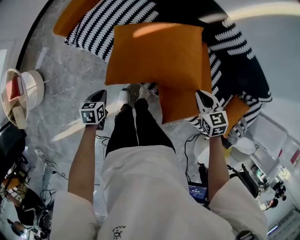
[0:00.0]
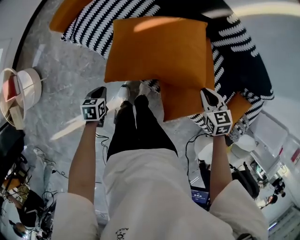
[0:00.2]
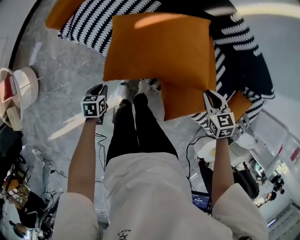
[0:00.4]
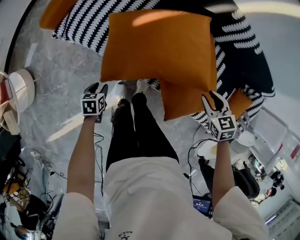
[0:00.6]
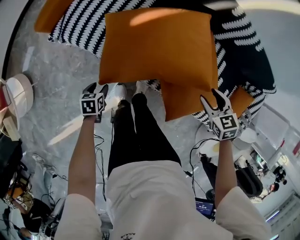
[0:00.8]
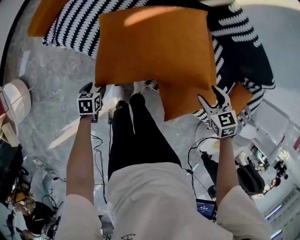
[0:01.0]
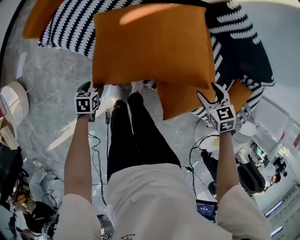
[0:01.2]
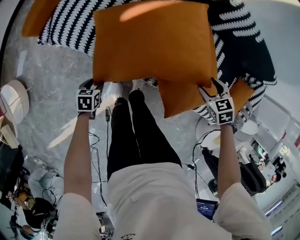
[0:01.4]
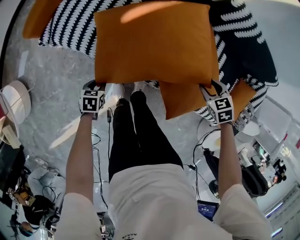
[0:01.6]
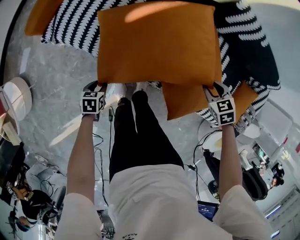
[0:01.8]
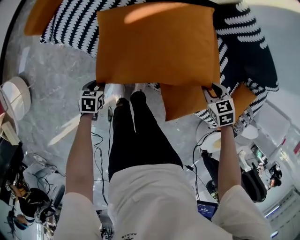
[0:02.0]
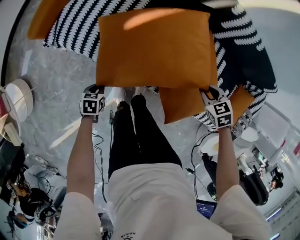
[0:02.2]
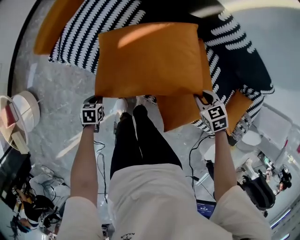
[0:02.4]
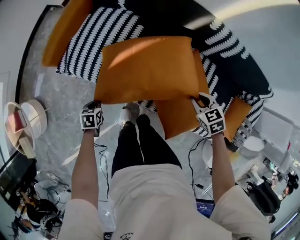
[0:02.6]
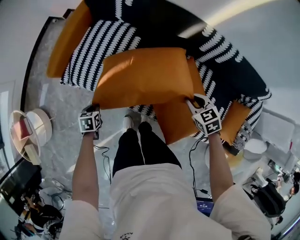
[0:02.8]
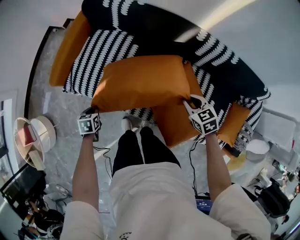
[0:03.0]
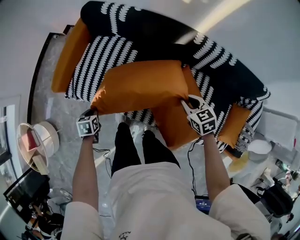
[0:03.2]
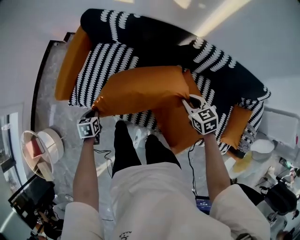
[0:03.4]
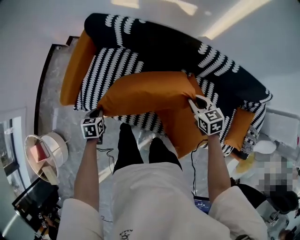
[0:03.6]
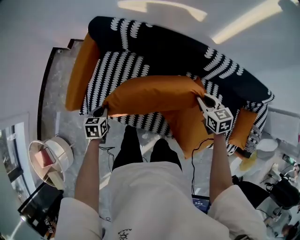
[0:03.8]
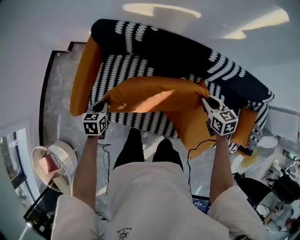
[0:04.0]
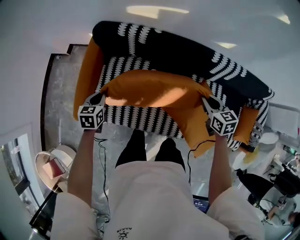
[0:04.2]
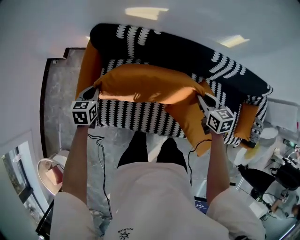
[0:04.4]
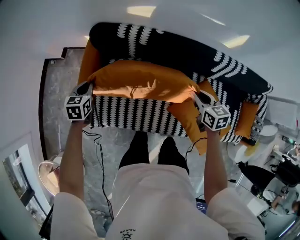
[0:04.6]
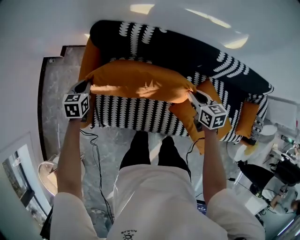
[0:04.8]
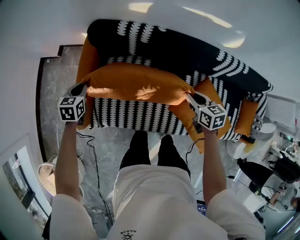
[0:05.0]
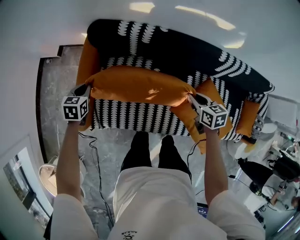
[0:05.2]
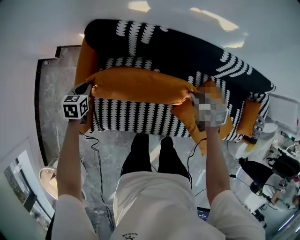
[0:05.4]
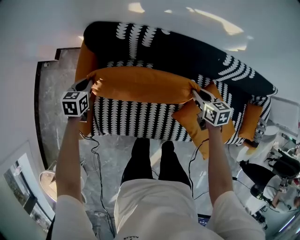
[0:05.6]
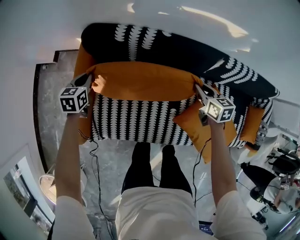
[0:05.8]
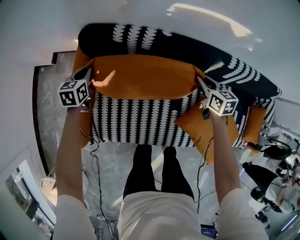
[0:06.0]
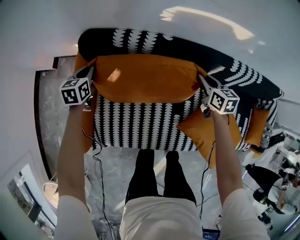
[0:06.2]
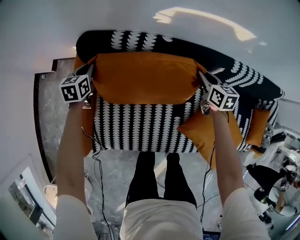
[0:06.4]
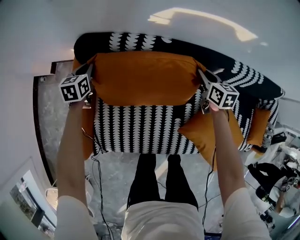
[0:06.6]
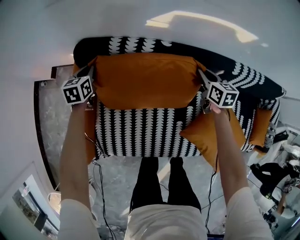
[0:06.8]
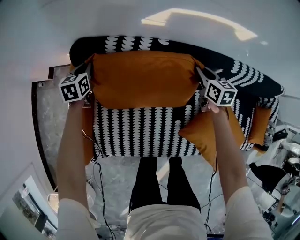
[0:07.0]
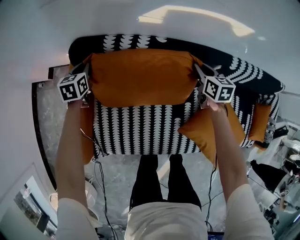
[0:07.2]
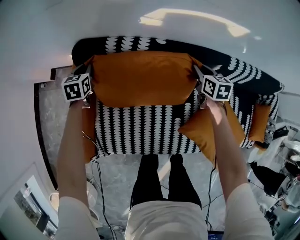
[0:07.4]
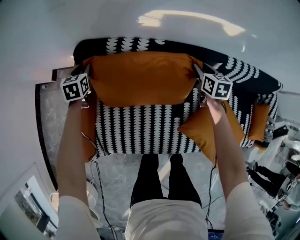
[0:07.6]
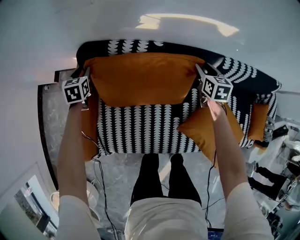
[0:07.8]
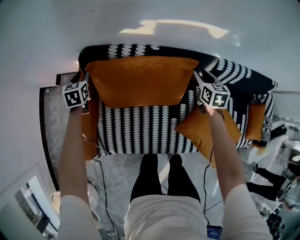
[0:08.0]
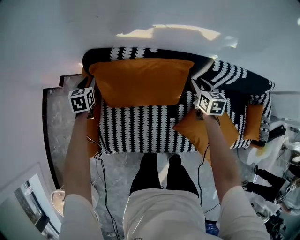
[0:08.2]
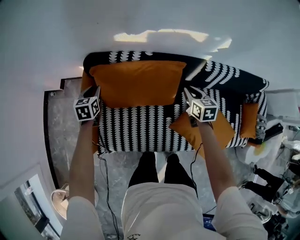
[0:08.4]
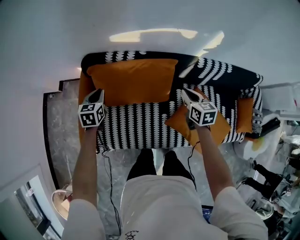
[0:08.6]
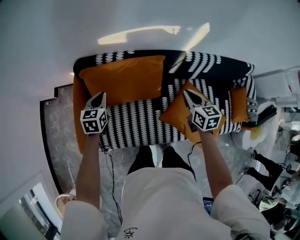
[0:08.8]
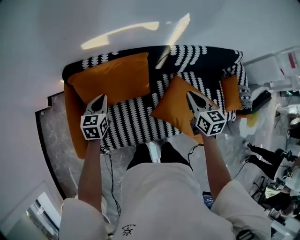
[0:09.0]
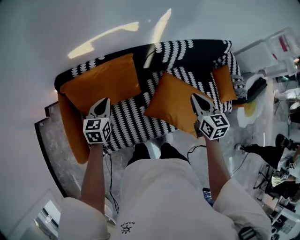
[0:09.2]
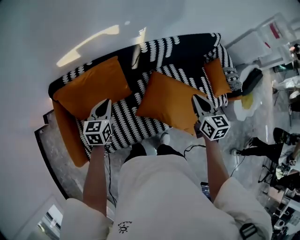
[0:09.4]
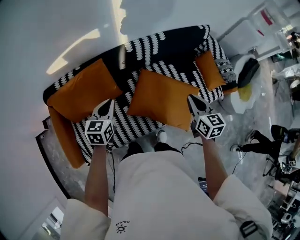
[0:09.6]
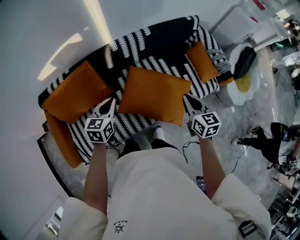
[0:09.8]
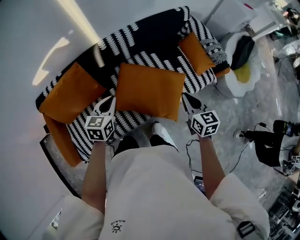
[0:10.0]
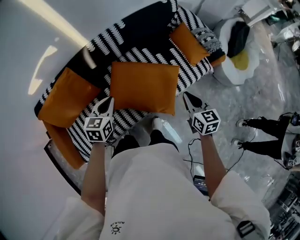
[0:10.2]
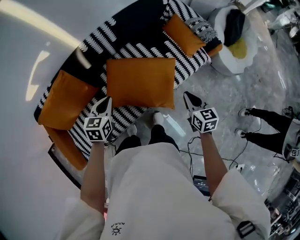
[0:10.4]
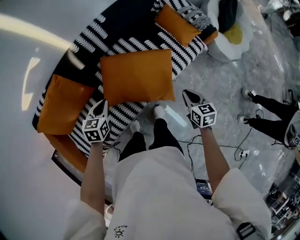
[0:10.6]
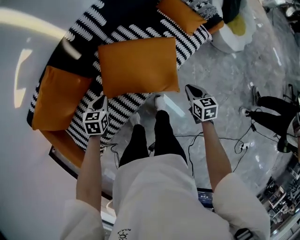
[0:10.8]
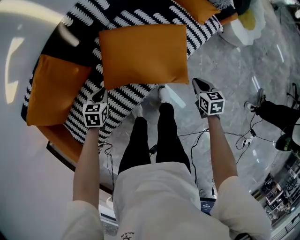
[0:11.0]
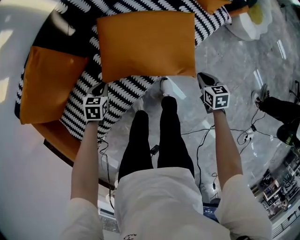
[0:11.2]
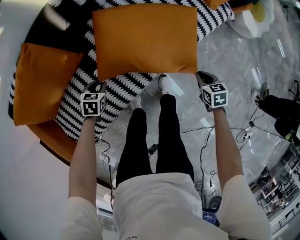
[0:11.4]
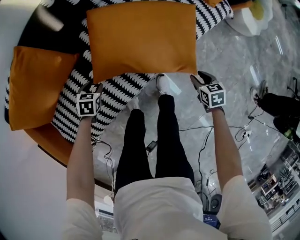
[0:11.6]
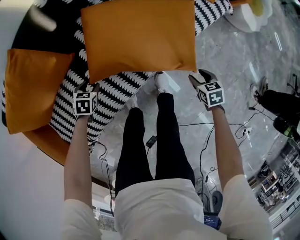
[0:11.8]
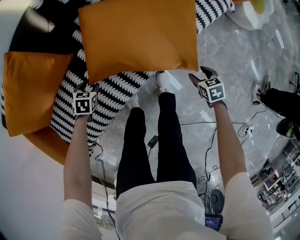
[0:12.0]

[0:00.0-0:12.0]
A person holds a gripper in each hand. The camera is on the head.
0:00.0 to 0:01.6: The right gripper goes some 15 cm downward and to the right, swivels roughly 20 degrees, and opens up; the left gripper heads downward, covering approximately 15 cm, and opens its fingers.
0:01.6 to 0:03.0: Both grippers travel together upward and forward, about 15 cm. The right gripper swivels approximately 20 degrees, and closes up. The left gripper closes.
0:03.0 to 0:04.4: The left gripper is displaced forward and upward by some 35 cm, and swivels approximately 30 degrees. Meanwhile the right gripper moves forward, to the left and upward, roughly 20 cm, and swivels about 30 degrees.
0:04.4 to 0:06.0: The two grippers go approximately 20 cm forward and downward.
0:06.0 to 0:07.6: The grippers both shift forward by approximately 10 cm. The left gripper opens its fingers.
0:07.6 to 0:09.0: The right gripper shifts about 35 cm backward and upward, and closes up, while the left gripper moves to the right, backward and upward, about 35 cm, swivels about 20 degrees, and closes its fingers.
0:09.0 to 0:10.4: The two grippers travel together, some 40 cm. The right gripper rotates approximately 30 degrees, while the left gripper turns by roughly 30 degrees.
0:10.4 to 0:12.0: Both grippers travel together downward, approximately 40 cm. The right gripper tilts its fingers about 40 degrees downward, and opens up; the left gripper points its fingers approximately 30 degrees further downward, and opens its fingers.

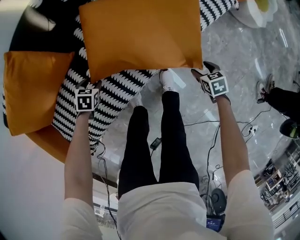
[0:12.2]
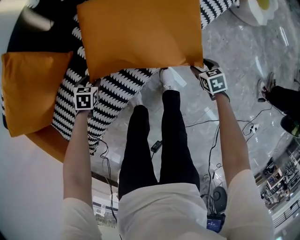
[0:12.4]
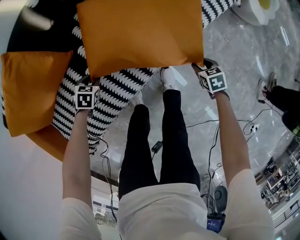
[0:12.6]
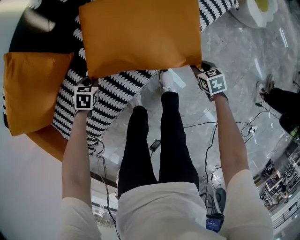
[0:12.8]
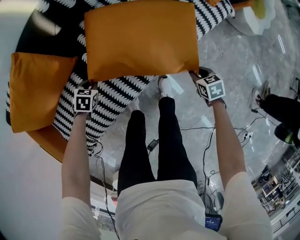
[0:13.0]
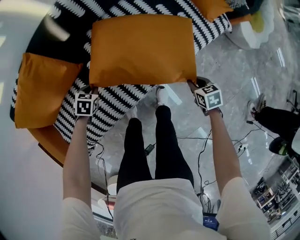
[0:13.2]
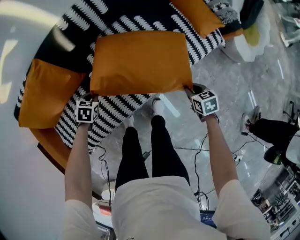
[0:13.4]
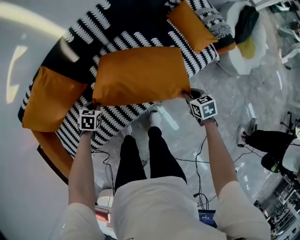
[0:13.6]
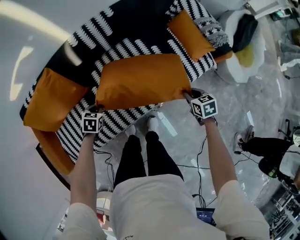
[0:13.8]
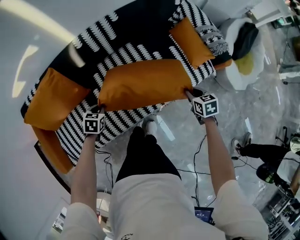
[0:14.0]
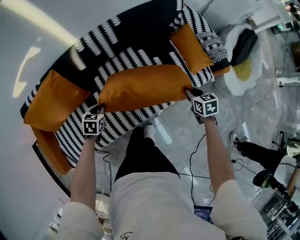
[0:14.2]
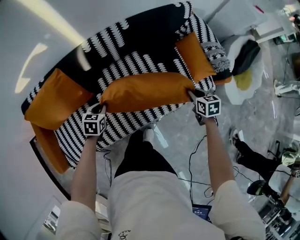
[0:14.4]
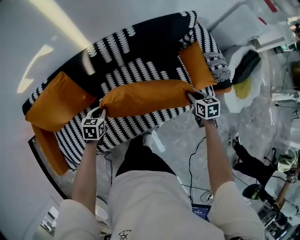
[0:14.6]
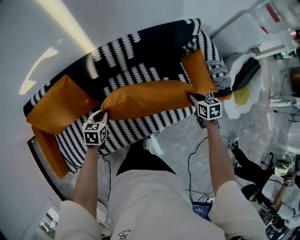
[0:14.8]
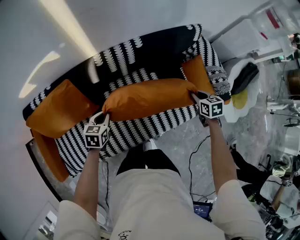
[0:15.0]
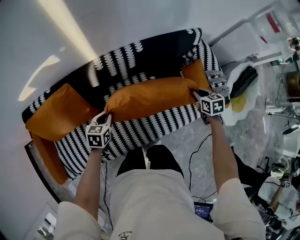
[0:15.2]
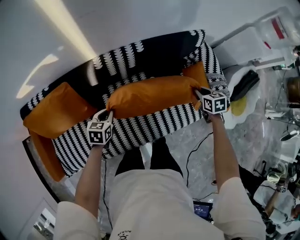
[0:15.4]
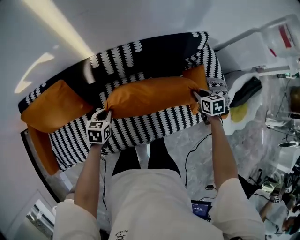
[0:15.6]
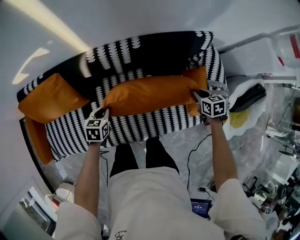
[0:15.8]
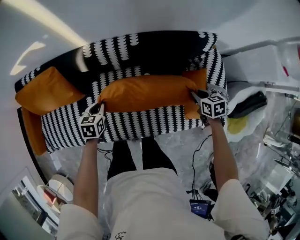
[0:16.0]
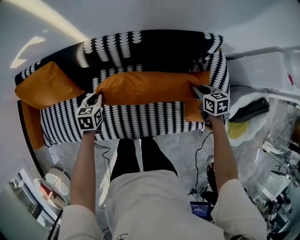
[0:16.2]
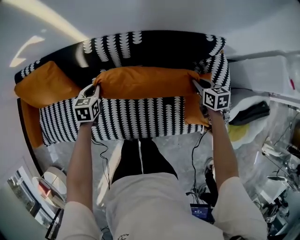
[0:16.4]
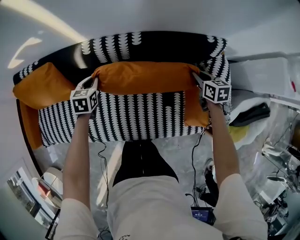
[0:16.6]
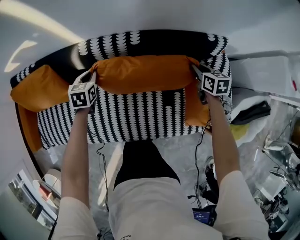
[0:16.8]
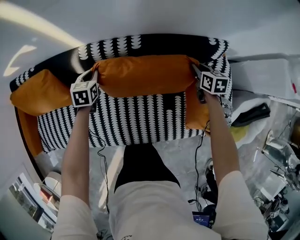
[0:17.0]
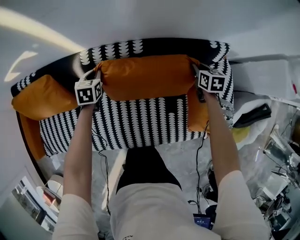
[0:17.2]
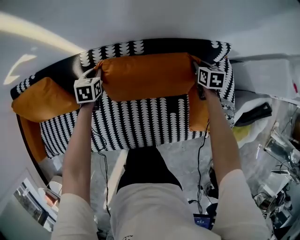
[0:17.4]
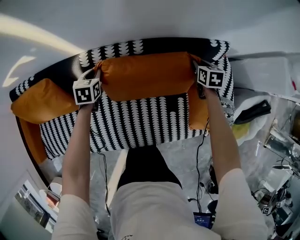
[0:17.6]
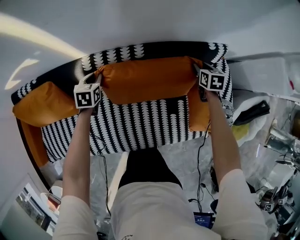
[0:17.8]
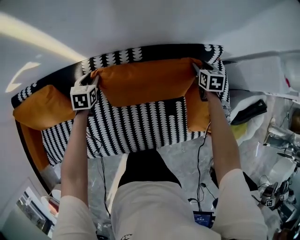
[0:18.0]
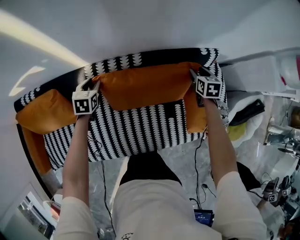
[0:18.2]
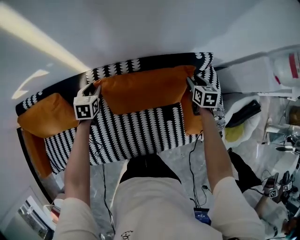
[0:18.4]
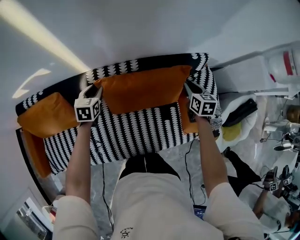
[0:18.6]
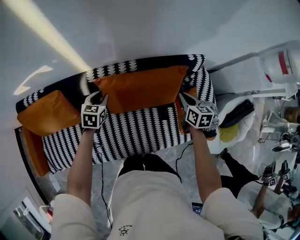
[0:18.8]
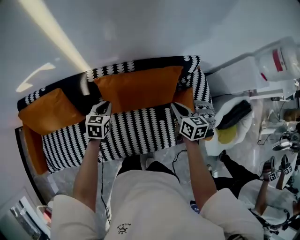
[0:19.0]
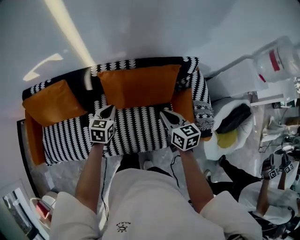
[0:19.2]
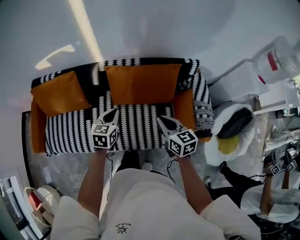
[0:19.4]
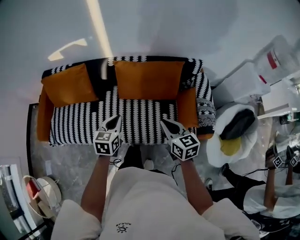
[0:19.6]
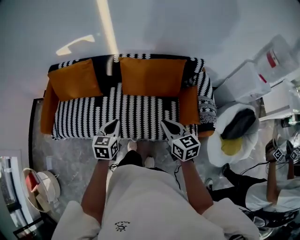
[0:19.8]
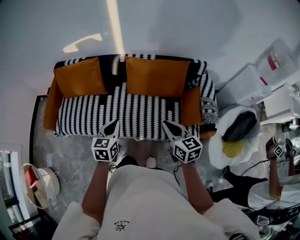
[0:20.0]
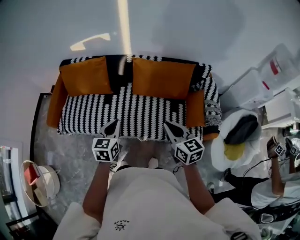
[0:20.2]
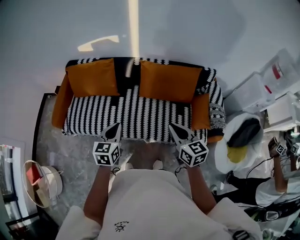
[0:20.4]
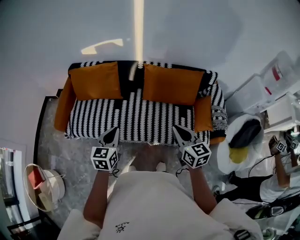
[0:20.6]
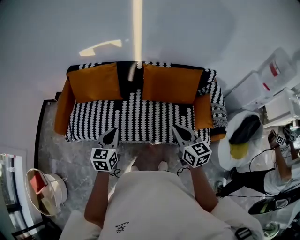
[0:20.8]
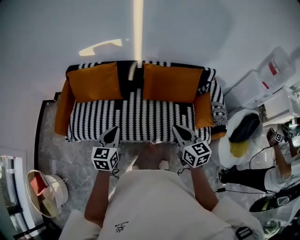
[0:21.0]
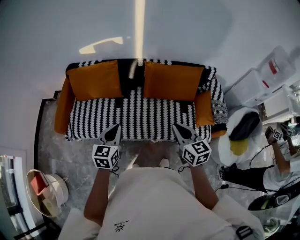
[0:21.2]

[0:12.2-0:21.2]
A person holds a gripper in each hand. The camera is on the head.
0:12.2 to 0:13.8: The two grippers go roughly 20 cm upward. The right gripper closes; the left gripper closes its fingers.
0:13.8 to 0:15.2: The left gripper is displaced upward and forward by about 15 cm, and turns by about 30 degrees, while the right gripper shifts roughly 30 cm forward and upward.
0:15.2 to 0:16.6: The left gripper ends up approximately 20 cm from where it was, and changes its angle by about 20 degrees, while the right gripper changes place by approximately 25 cm.
0:16.6 to 0:18.2: Both grippers move forward, roughly 10 cm. The right gripper swivels some 20 degrees, and opens up, while the left gripper opens up.
0:18.2 to 0:19.8: The pair of grippers is taken backward, about 50 cm. The two grippers go approximately 20 cm upward. The right gripper rotates some 40 degrees, and closes; the left gripper closes its fingers.
0:19.8 to 0:21.2: Both grippers travel together to the left, some 20 cm.

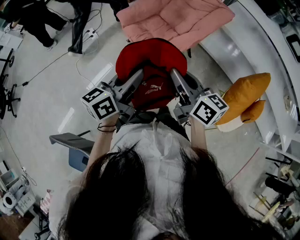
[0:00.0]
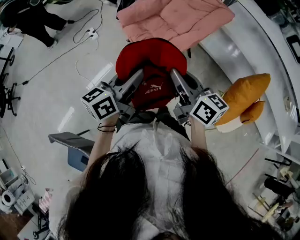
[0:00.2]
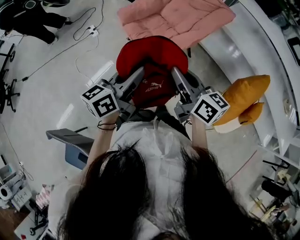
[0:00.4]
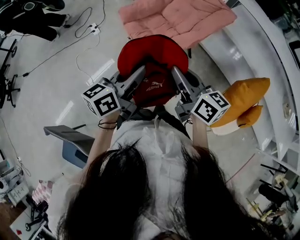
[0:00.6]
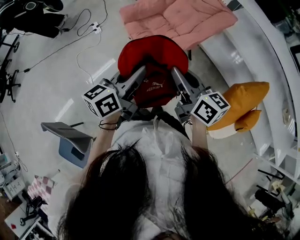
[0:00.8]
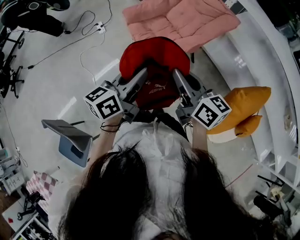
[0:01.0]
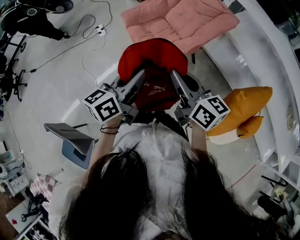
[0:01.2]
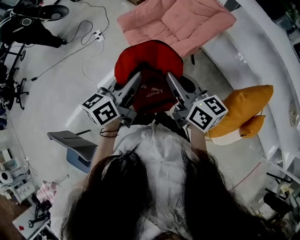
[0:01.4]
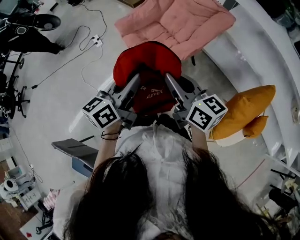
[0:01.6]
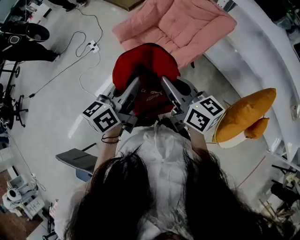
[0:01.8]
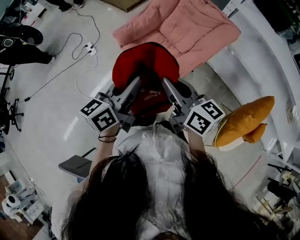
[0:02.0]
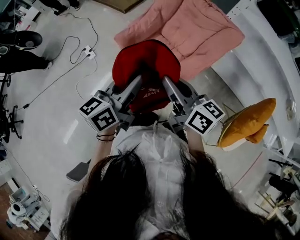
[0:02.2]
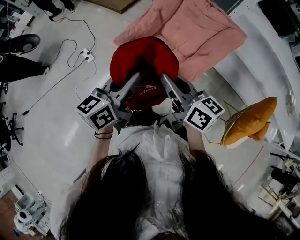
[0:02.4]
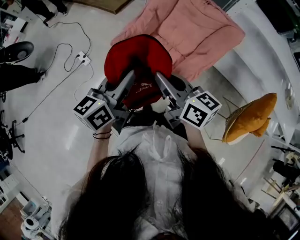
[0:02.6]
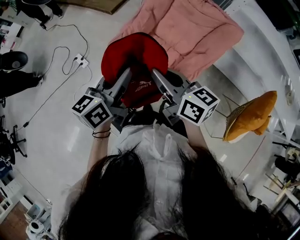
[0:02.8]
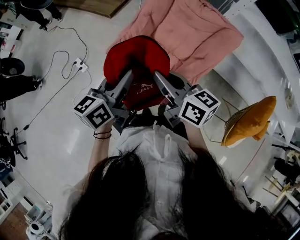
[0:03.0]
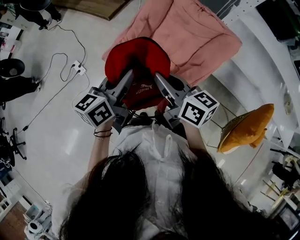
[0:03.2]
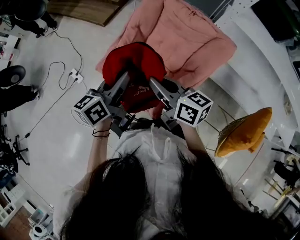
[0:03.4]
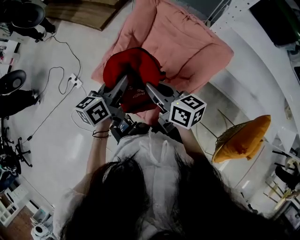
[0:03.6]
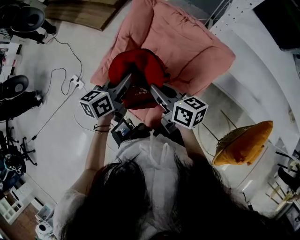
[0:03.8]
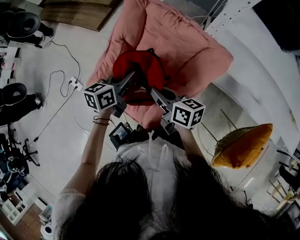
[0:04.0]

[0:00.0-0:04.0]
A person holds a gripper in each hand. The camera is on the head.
0:00.0 to 0:01.4: Both grippers travel together to the right, some 10 cm.
0:01.4 to 0:02.6: The grippers both shift forward and to the left by about 30 cm.
0:02.6 to 0:04.0: The grippers both shift forward, to the right and downward by roughly 35 cm. The left gripper swivels approximately 20 degrees.
